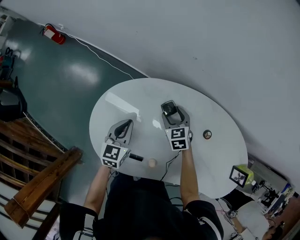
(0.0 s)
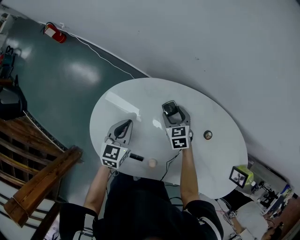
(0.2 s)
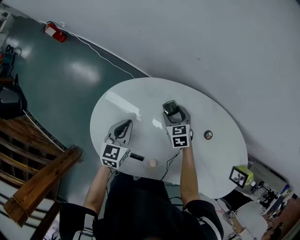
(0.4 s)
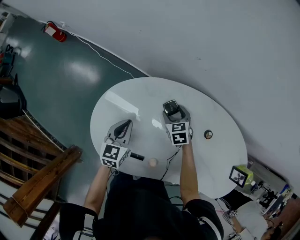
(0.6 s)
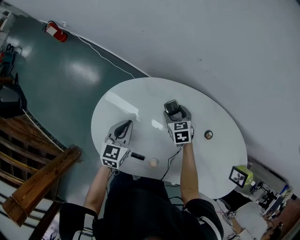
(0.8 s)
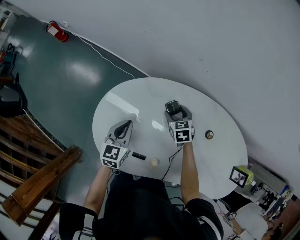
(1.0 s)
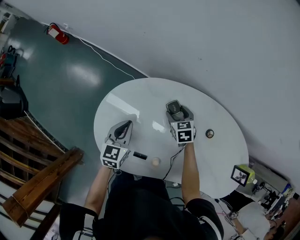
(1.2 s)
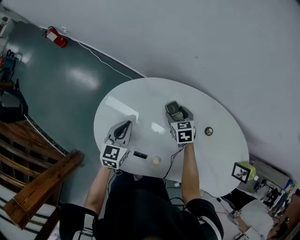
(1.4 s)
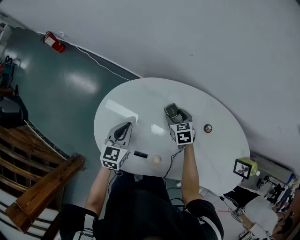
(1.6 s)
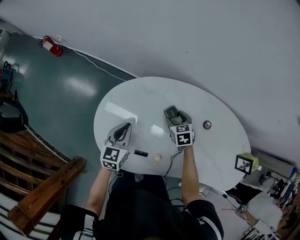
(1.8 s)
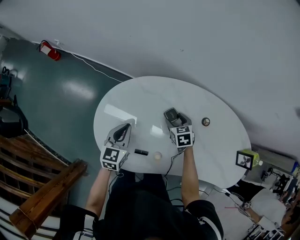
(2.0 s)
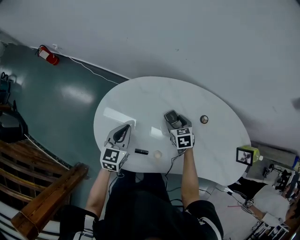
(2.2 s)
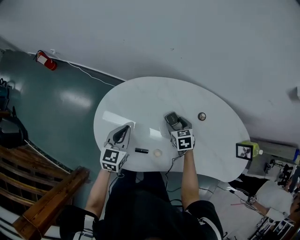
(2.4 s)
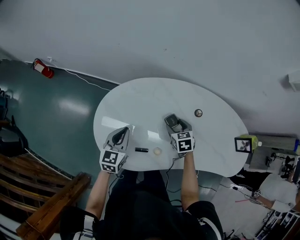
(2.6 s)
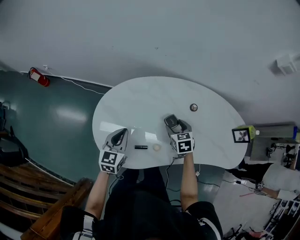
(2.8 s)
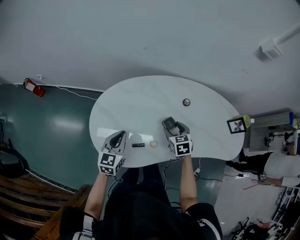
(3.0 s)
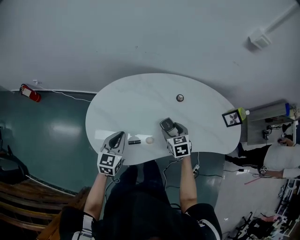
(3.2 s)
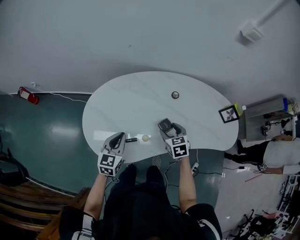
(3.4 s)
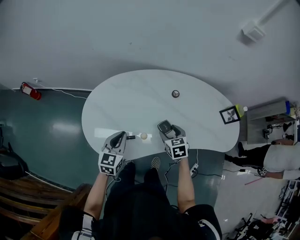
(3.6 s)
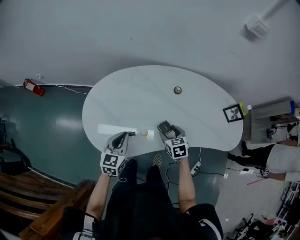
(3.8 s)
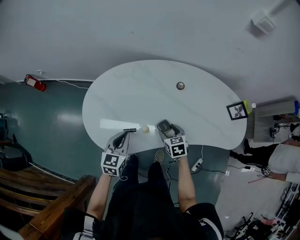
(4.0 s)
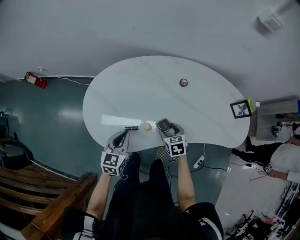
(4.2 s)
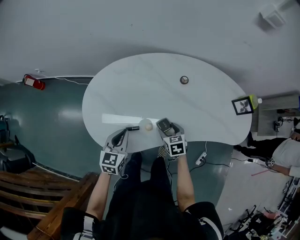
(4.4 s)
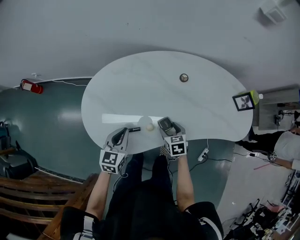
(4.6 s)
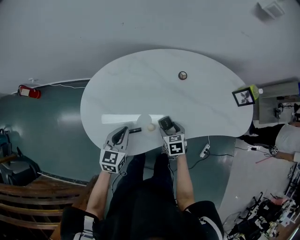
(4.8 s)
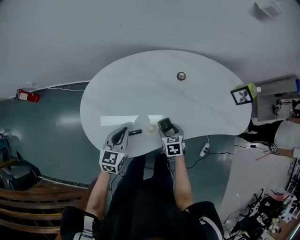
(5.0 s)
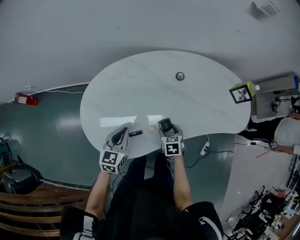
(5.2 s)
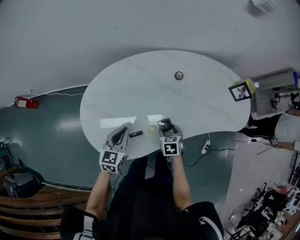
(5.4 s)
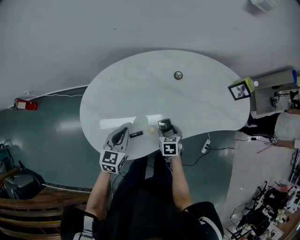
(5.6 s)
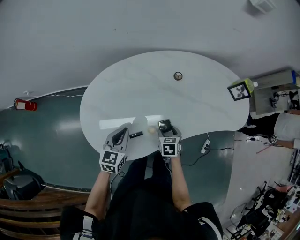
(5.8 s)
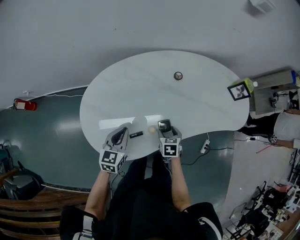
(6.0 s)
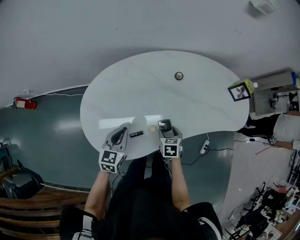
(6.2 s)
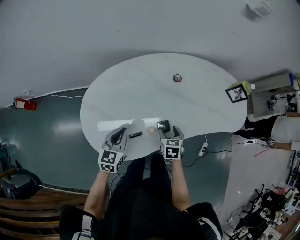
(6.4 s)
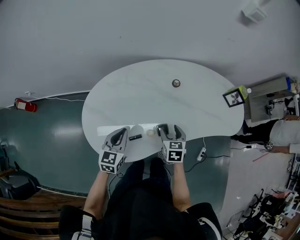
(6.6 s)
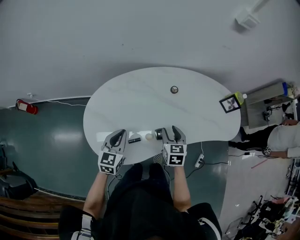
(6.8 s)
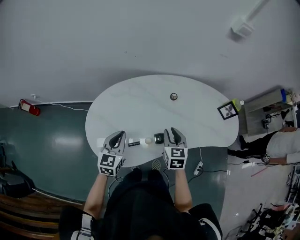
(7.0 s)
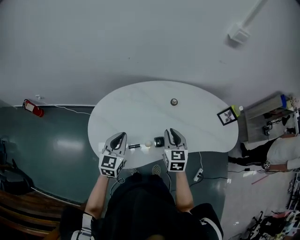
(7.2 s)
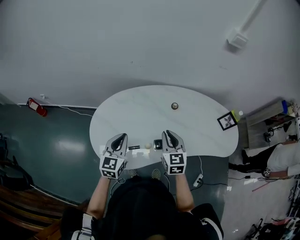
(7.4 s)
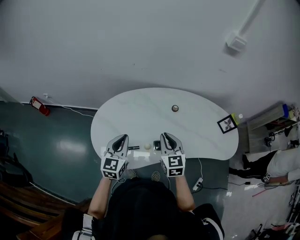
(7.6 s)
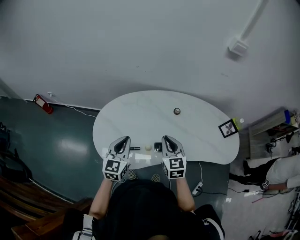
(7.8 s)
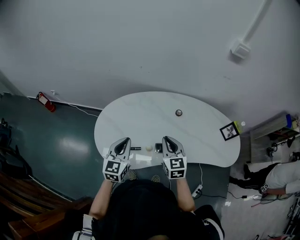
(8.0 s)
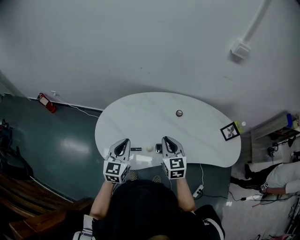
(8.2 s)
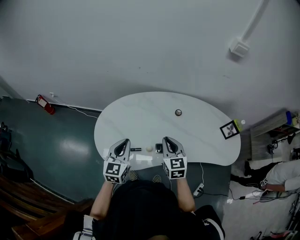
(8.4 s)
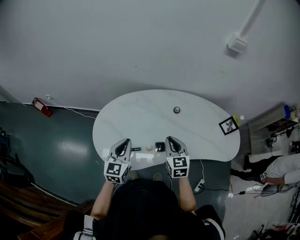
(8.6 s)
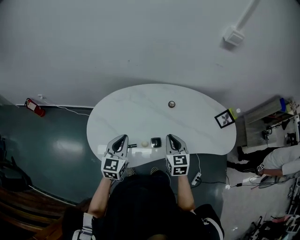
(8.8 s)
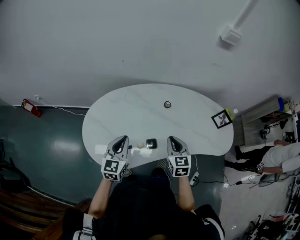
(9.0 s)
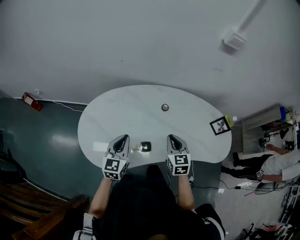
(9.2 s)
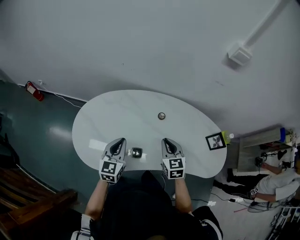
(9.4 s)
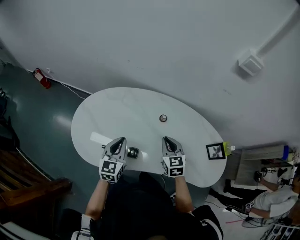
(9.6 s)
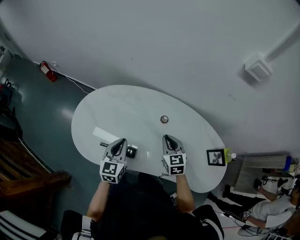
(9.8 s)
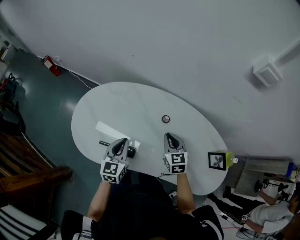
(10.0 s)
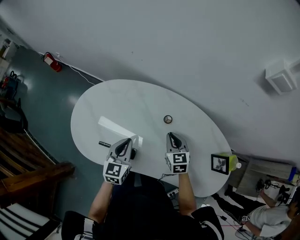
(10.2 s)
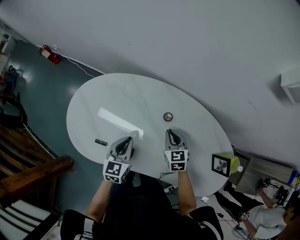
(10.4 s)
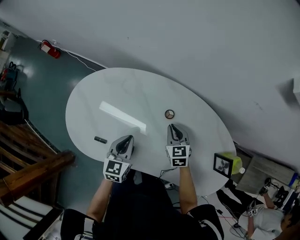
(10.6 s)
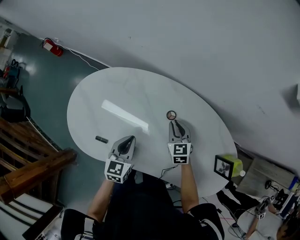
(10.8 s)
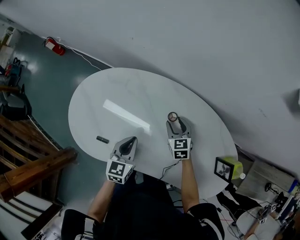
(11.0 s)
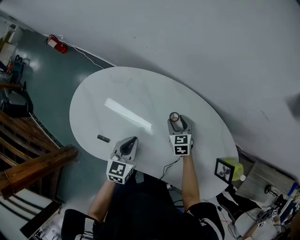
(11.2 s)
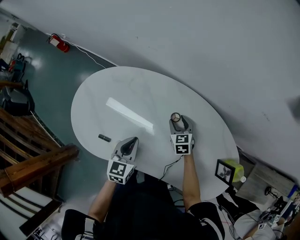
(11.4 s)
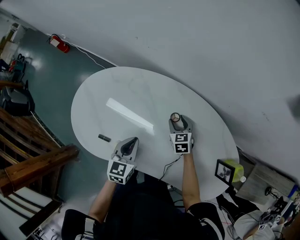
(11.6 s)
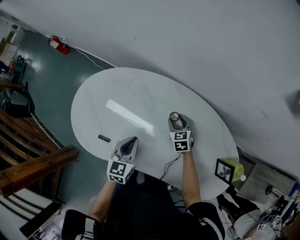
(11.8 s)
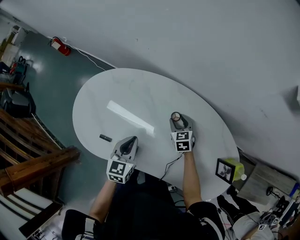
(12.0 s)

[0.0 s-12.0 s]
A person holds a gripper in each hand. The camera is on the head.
0.0 to 1.6 s: There are only small adjustments of the grippers.
1.6 to 3.0 s: The right gripper travels backward and upward by about 20 cm, and turns by approximately 20 degrees, while the left gripper is displaced backward and upward by approximately 15 cm.
3.0 to 4.4 s: The left gripper heads to the right and backward, covering roughly 10 cm, while the right gripper travels backward and downward by some 15 cm.
4.4 to 6.0 s: The right gripper changes its angle by some 20 degrees. Meanwhile the left gripper shifts by approximately 5 cm.
6.0 to 7.6 s: The left gripper moves upward, about 15 cm, and changes its angle by approximately 20 degrees. Meanwhile the right gripper moves upward, about 25 cm, tips its fingers upward by approximately 40 degrees, and closes its fingers.
7.6 to 9.0 s: The right gripper shifts some 10 cm to the right.
9.0 to 10.4 s: The right gripper changes place by some 25 cm, and swivels approximately 30 degrees. The left gripper ends up some 20 cm from where it was, and turns by some 20 degrees.
10.4 to 12.0 s: The right gripper travels downward and forward by about 10 cm, and opens.

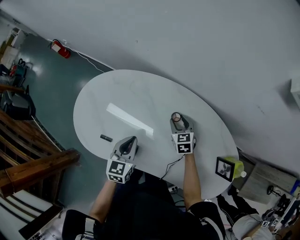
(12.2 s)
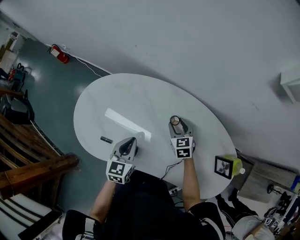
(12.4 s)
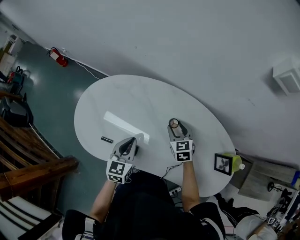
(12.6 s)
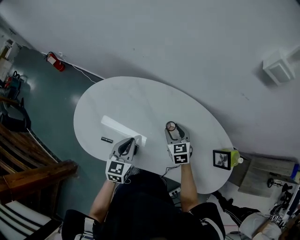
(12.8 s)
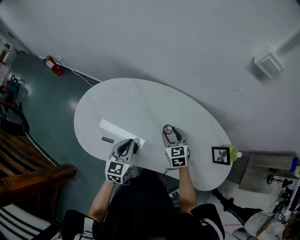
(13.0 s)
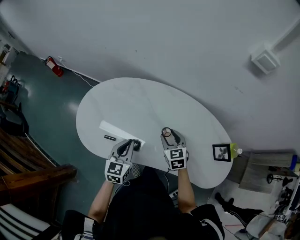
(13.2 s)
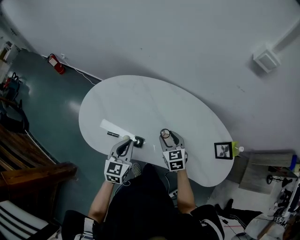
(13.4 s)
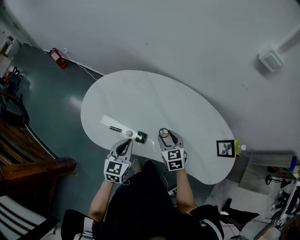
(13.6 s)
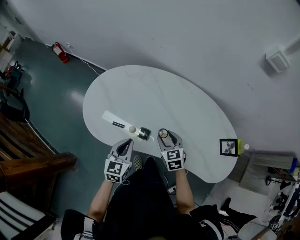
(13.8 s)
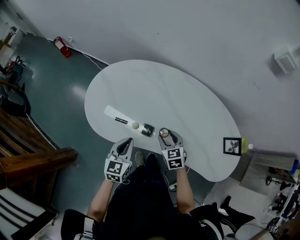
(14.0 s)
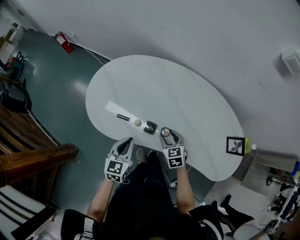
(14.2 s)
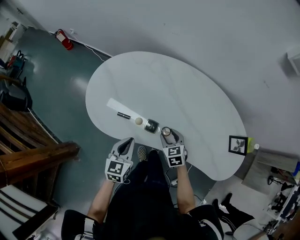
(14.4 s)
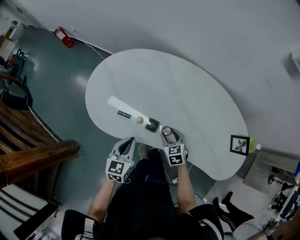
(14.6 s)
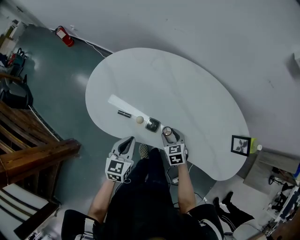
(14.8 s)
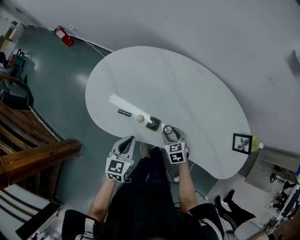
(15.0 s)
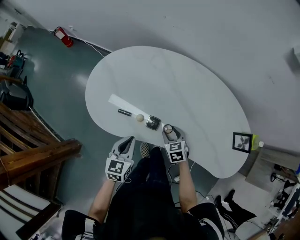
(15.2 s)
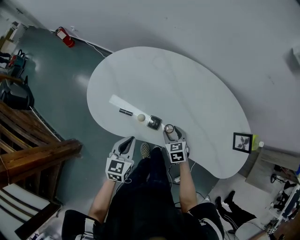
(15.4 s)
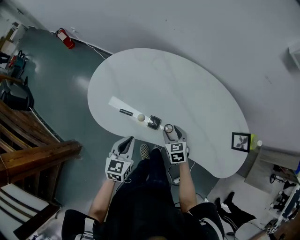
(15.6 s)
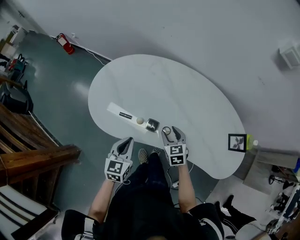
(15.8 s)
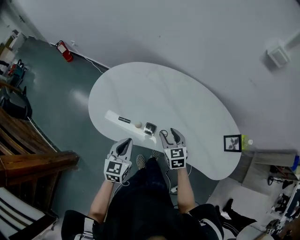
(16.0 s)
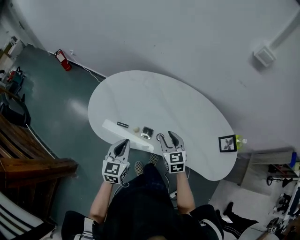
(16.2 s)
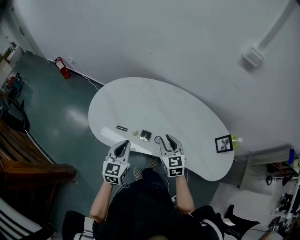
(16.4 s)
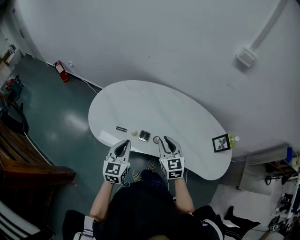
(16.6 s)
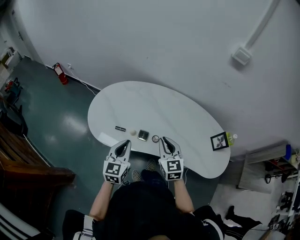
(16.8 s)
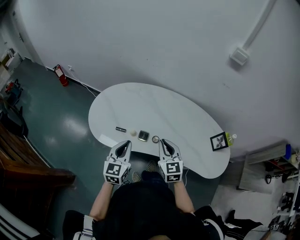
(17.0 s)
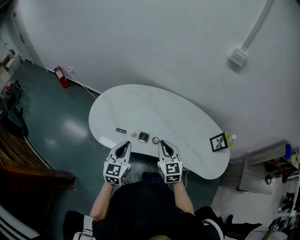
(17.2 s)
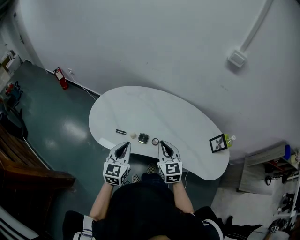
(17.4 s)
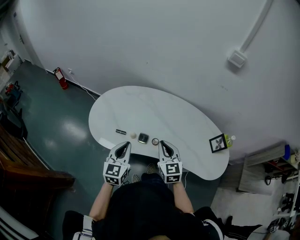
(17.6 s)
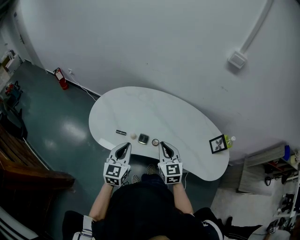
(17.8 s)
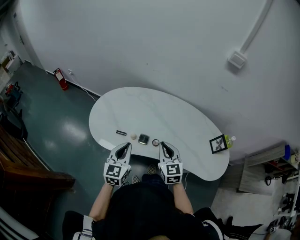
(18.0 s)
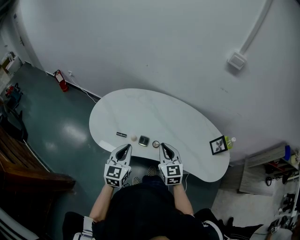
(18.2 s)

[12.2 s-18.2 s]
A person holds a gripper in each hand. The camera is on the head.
12.2 to 13.8 s: Both grippers travel together backward and to the left, roughly 20 cm.
13.8 to 15.2 s: The left gripper is displaced downward by about 5 cm. Meanwhile the right gripper moves downward, roughly 10 cm.
15.2 to 16.6 s: The right gripper heads upward, covering about 25 cm, swivels some 30 degrees, and closes its fingers, while the left gripper moves upward, some 15 cm.
16.6 to 18.2 s: There are only small adjustments of the grippers.

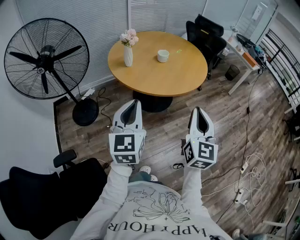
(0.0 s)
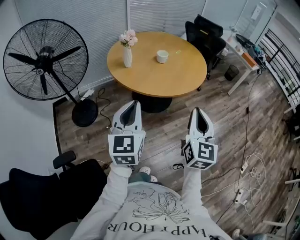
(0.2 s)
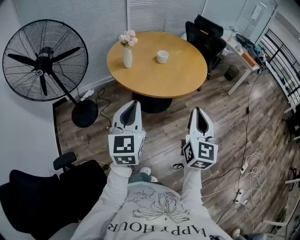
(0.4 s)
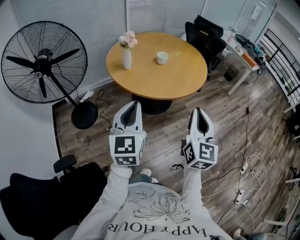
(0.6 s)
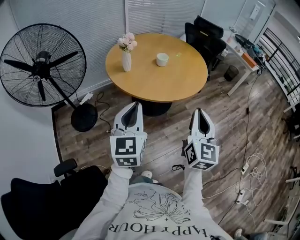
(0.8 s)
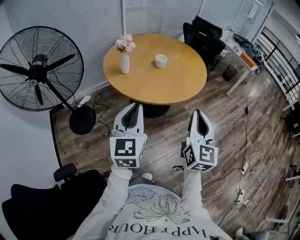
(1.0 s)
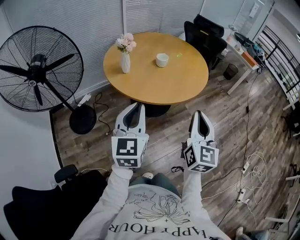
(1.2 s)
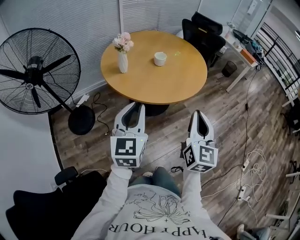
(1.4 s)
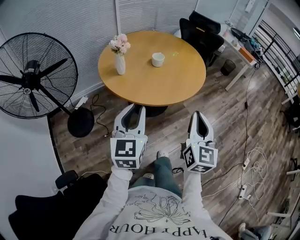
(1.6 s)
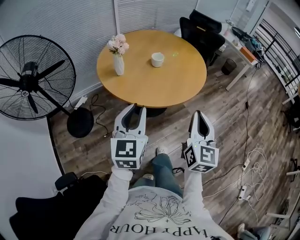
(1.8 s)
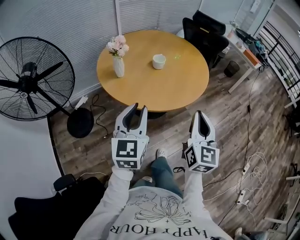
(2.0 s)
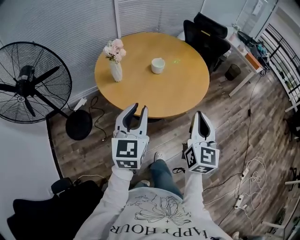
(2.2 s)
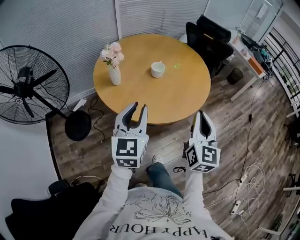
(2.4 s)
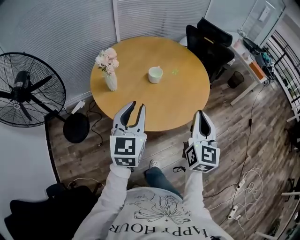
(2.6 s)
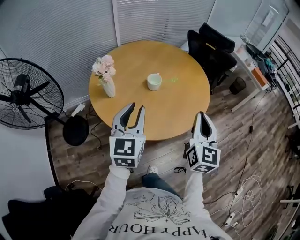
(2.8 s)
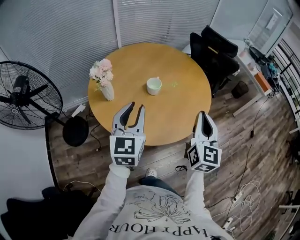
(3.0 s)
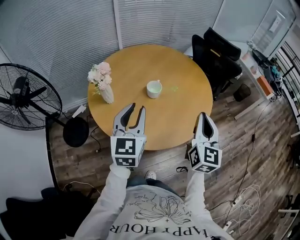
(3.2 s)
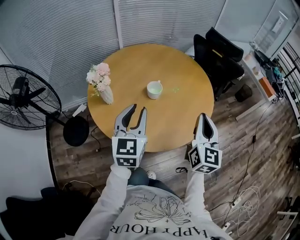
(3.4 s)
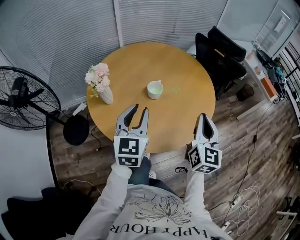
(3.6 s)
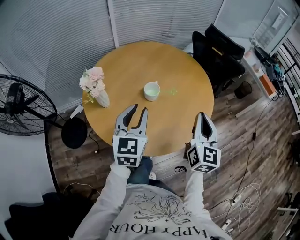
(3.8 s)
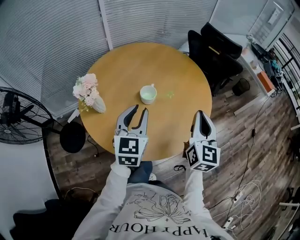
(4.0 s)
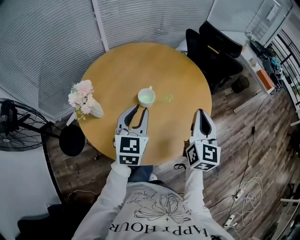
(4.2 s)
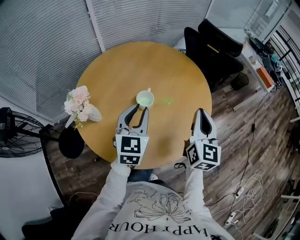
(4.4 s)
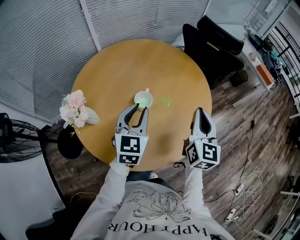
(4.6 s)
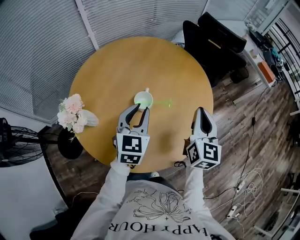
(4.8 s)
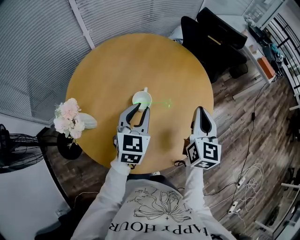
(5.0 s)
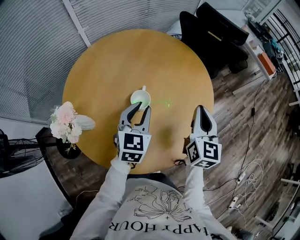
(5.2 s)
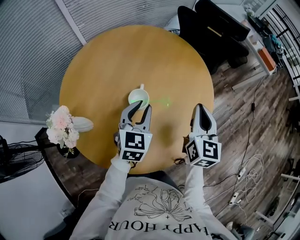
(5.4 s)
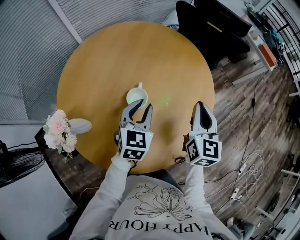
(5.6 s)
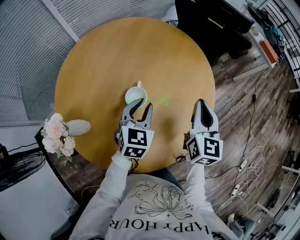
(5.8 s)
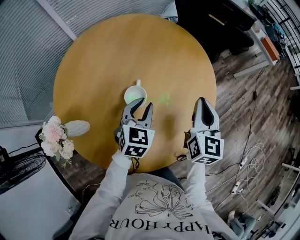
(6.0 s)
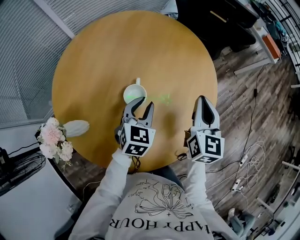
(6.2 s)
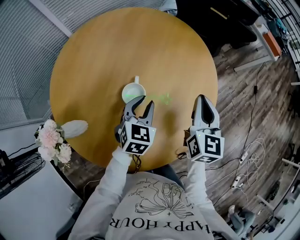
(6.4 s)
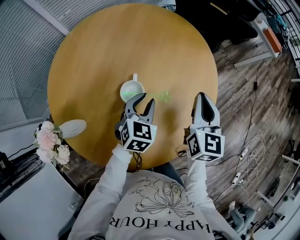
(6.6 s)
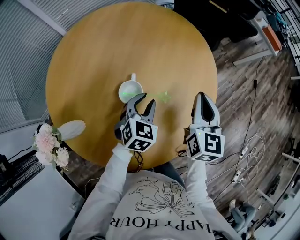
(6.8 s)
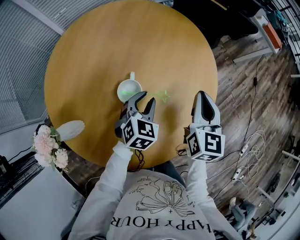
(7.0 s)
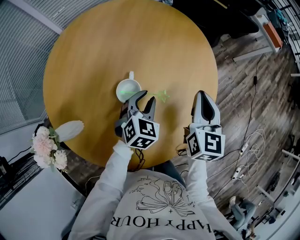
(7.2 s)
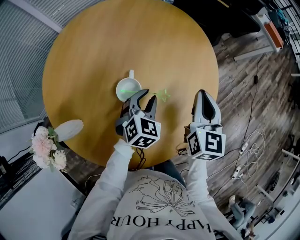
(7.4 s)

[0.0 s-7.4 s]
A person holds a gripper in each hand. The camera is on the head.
0.0 to 1.4 s: The grippers both shift forward by roughly 10 cm.
1.4 to 3.0 s: Both grippers travel together forward, about 35 cm.
3.0 to 4.4 s: The two grippers go approximately 20 cm forward.
4.4 to 6.0 s: The right gripper moves forward and downward, some 15 cm; the left gripper heads downward and forward, covering about 20 cm, and changes its angle by approximately 20 degrees.
6.0 to 7.4 s: The left gripper moves downward, some 10 cm.
